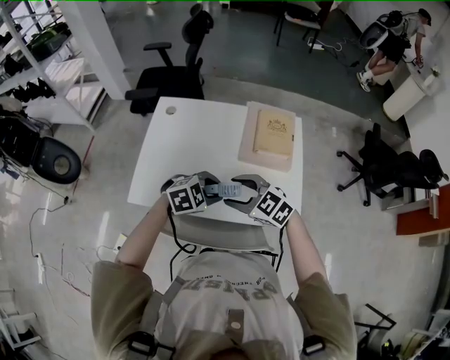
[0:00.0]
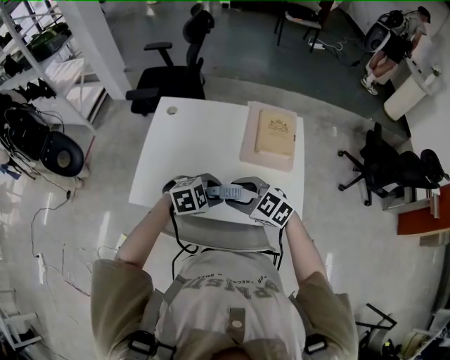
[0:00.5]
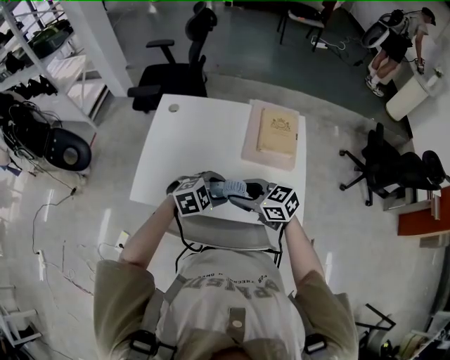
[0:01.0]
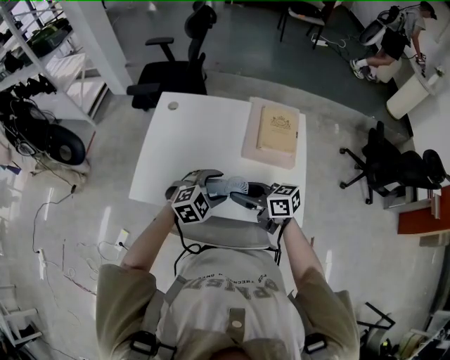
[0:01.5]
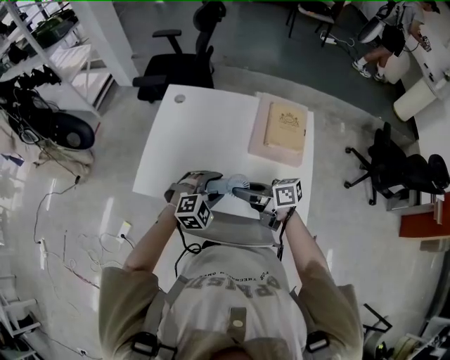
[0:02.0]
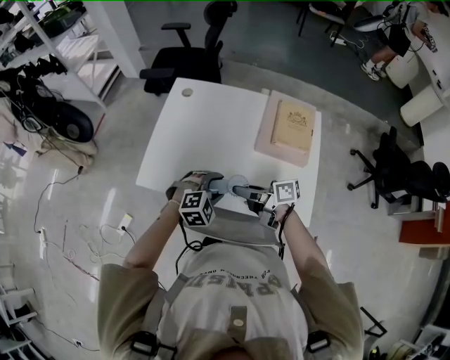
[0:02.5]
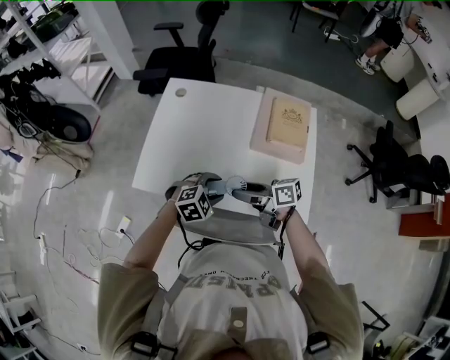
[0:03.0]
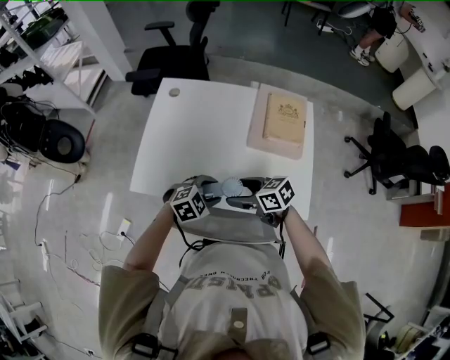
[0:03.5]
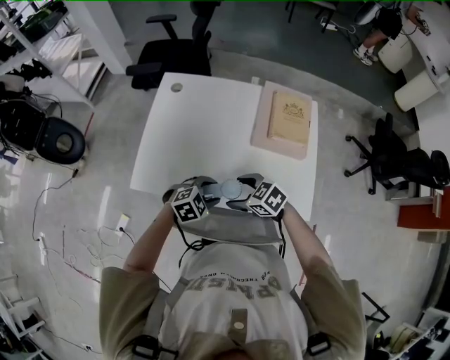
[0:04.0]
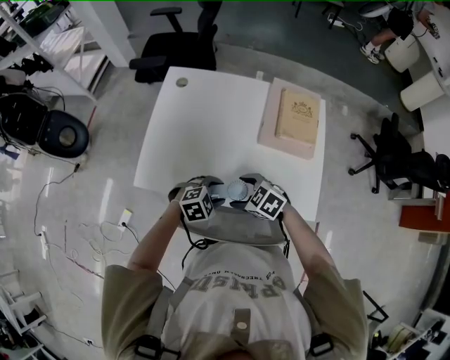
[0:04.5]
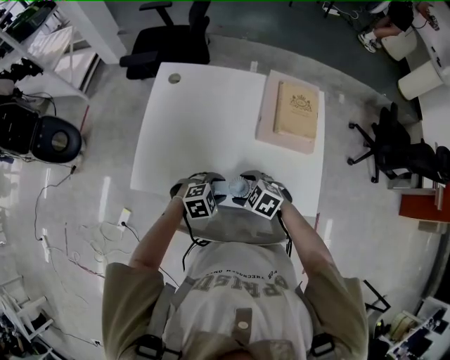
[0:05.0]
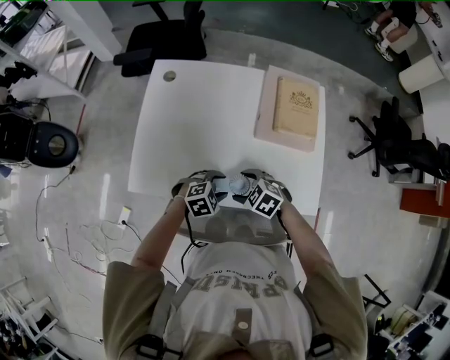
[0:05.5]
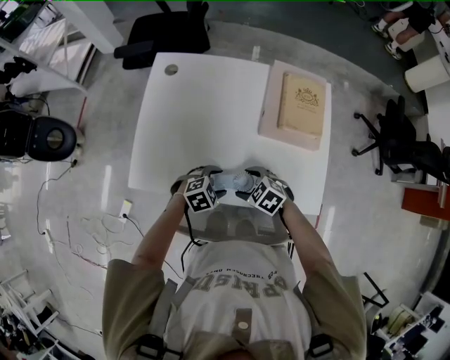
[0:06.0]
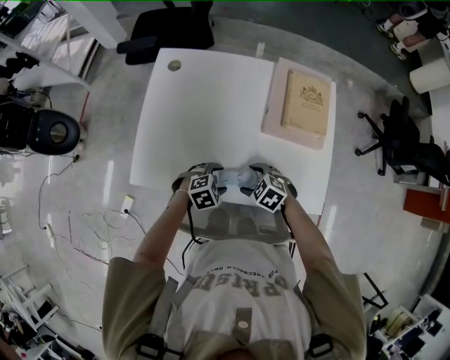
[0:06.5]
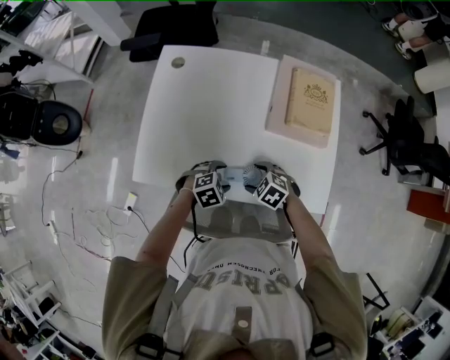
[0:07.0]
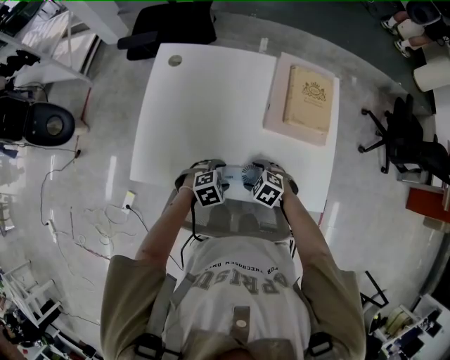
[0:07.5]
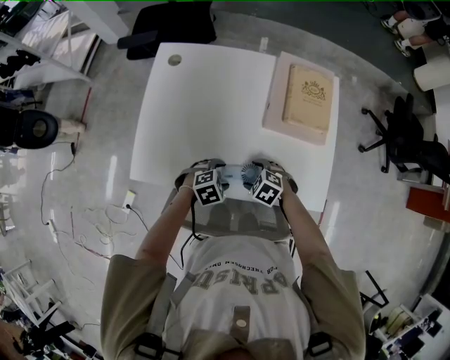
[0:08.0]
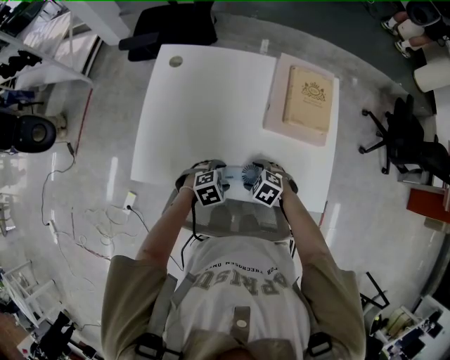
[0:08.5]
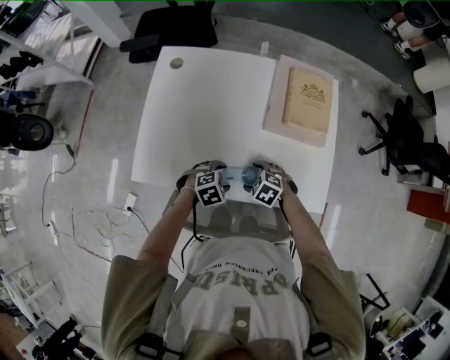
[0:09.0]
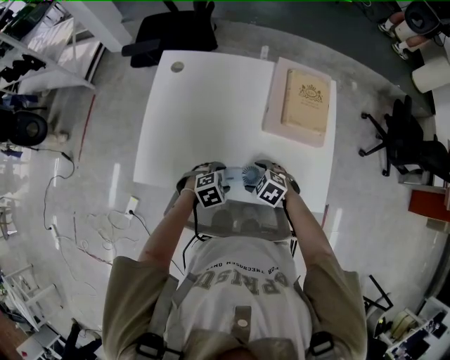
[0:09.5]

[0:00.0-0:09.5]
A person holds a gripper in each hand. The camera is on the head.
0:00.0 to 0:02.0: The left gripper turns by about 30 degrees, and opens its fingers; the right gripper rolls clockwise, seen from behind, by some 60 degrees.
0:02.0 to 0:04.0: The two grippers go about 10 cm downward. The right gripper angles its fingers downward, by roughly 30 degrees, and opens up. Meanwhile the left gripper swivels approximately 30 degrees.
0:04.0 to 0:05.5: Both grippers travel together downward, about 5 cm.
0:05.5 to 0:07.5: The right gripper shifts about 10 cm downward.
0:07.5 to 0:09.5: The grippers move only a little.

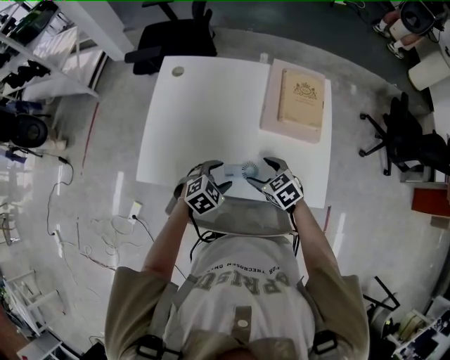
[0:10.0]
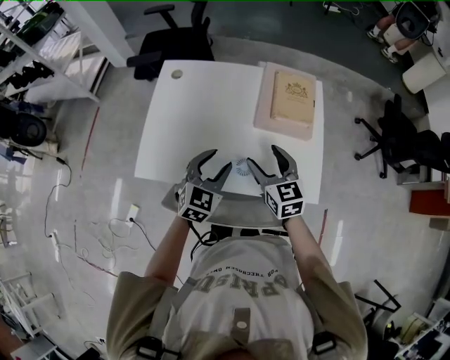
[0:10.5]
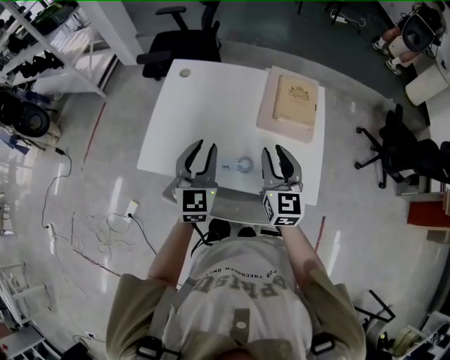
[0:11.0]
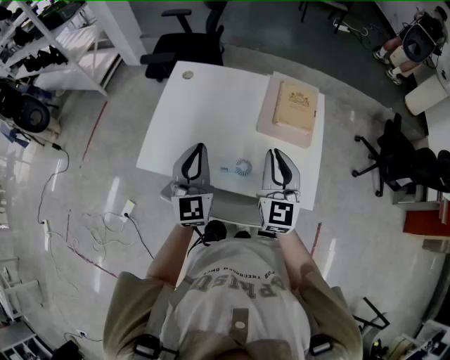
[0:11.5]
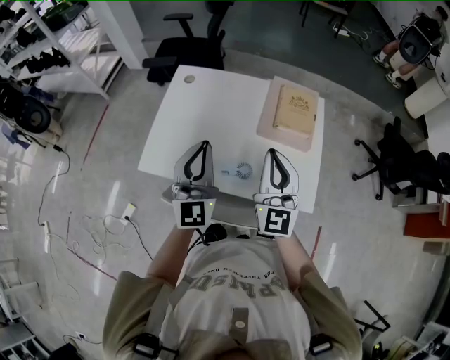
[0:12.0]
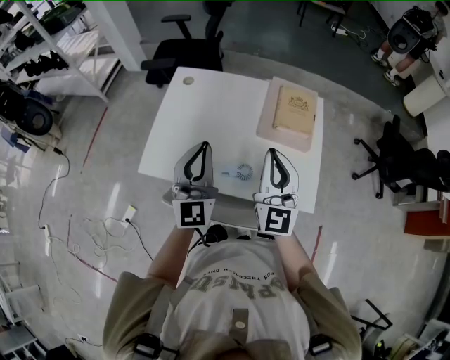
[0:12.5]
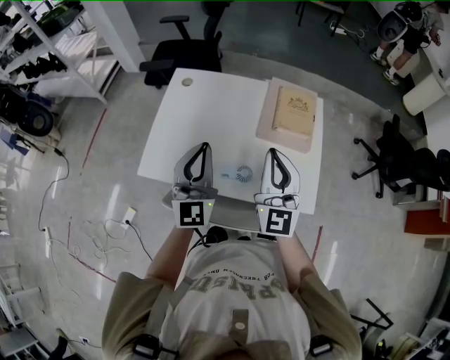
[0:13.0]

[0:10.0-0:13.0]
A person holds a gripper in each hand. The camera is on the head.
0:10.0 to 0:11.5: Both grippers move upward, about 25 cm. The right gripper tips its fingers upward by about 50 degrees, and closes its fingers. Meanwhile the left gripper angles its fingers upward, by about 50 degrees, and closes its fingers.
0:11.5 to 0:13.0: The right gripper travels upward by about 5 cm.

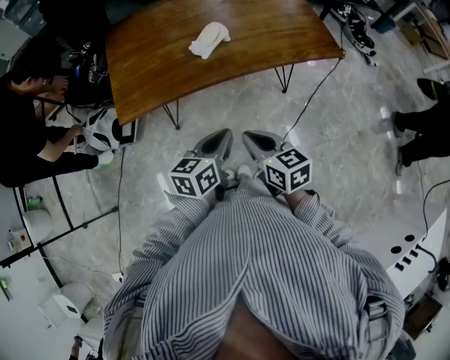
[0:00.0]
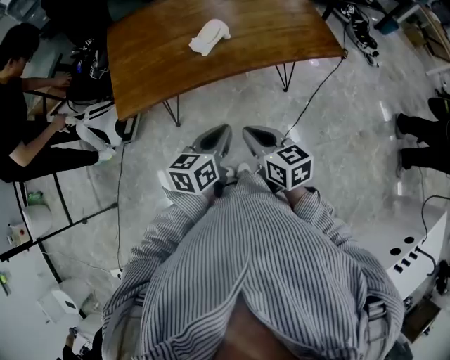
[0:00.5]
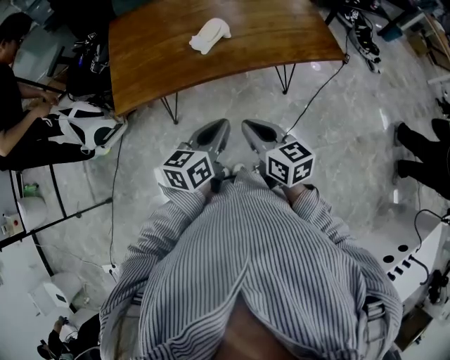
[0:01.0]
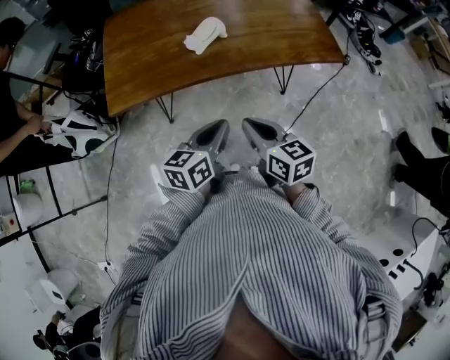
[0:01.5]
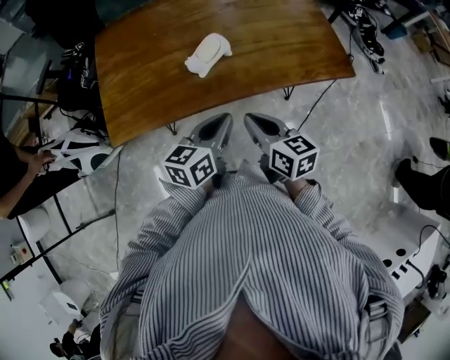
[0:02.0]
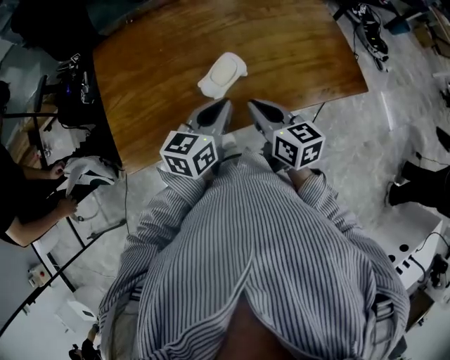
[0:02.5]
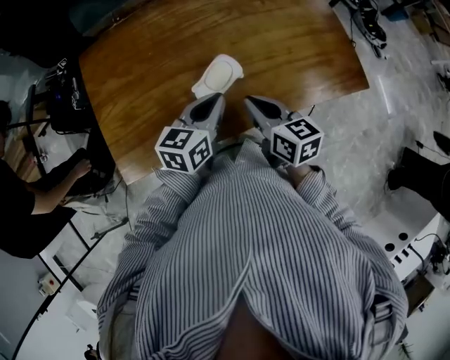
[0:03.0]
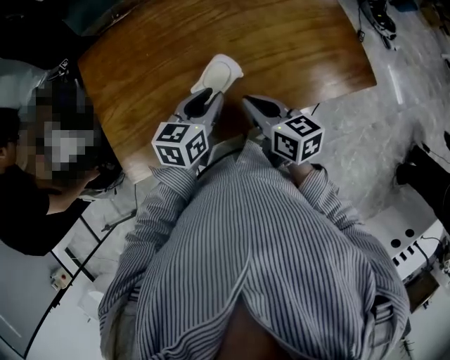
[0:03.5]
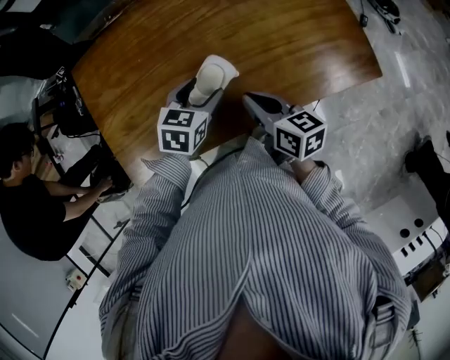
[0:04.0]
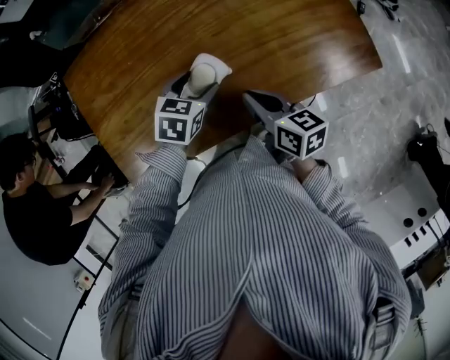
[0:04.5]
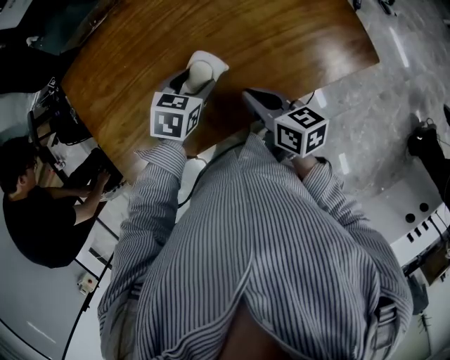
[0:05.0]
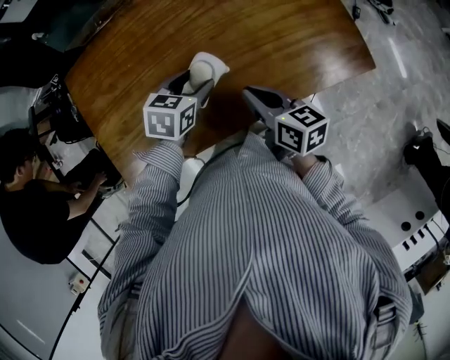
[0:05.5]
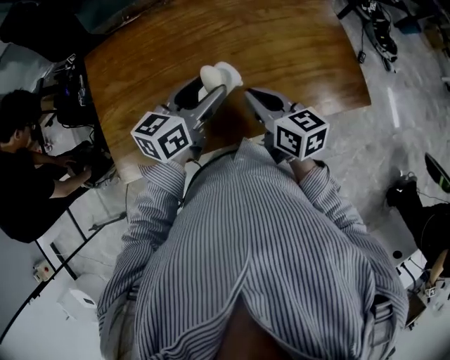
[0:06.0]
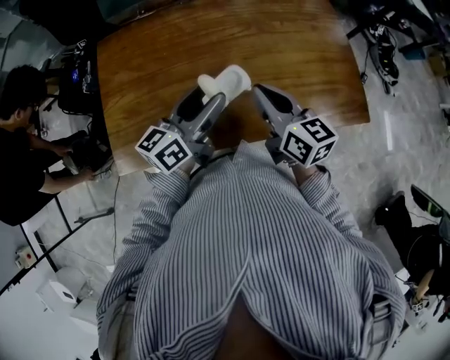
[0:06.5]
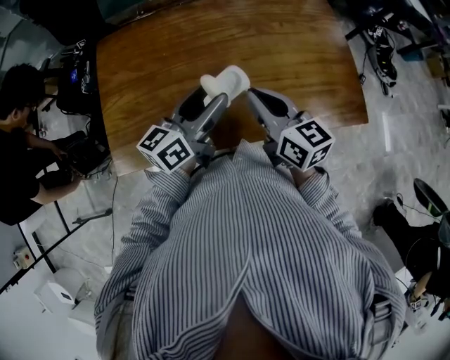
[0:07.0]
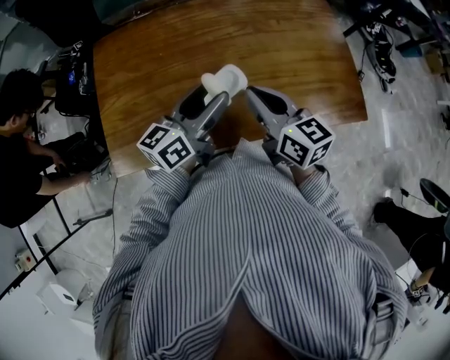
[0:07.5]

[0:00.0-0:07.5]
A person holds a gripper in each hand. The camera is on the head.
0:00.0 to 0:02.0: The two grippers go about 15 cm forward.
0:02.0 to 0:04.0: Both grippers travel together forward, roughly 20 cm. The left gripper swivels about 40 degrees, and opens up.
0:04.0 to 0:05.5: The grippers make only small movements.
0:05.5 to 0:07.5: The grippers both shift upward by about 10 cm. The left gripper points its fingers approximately 50 degrees further upward; the right gripper turns by roughly 20 degrees.

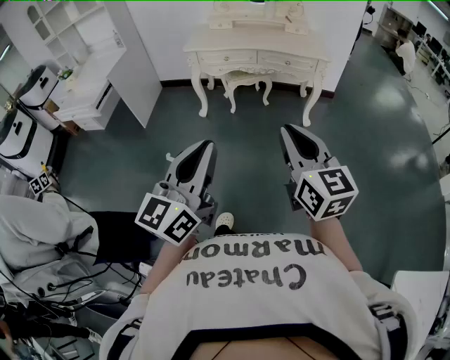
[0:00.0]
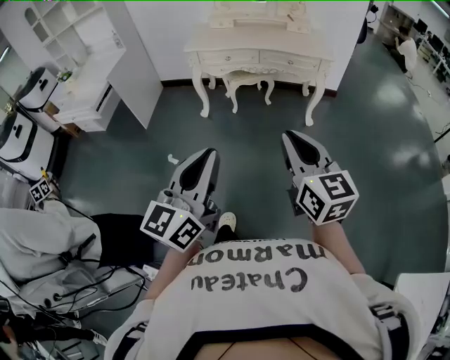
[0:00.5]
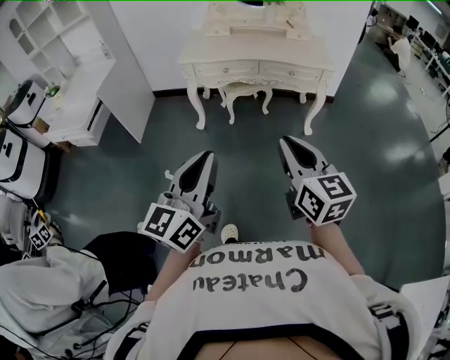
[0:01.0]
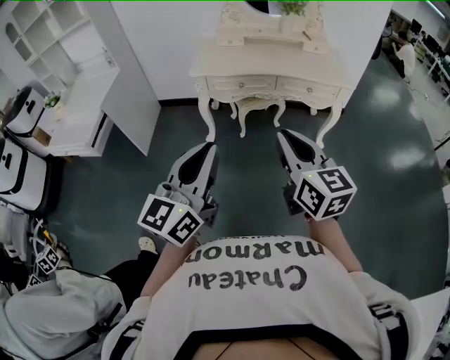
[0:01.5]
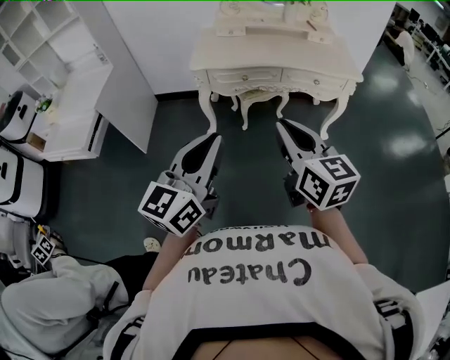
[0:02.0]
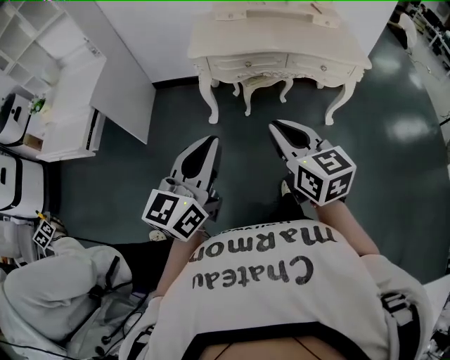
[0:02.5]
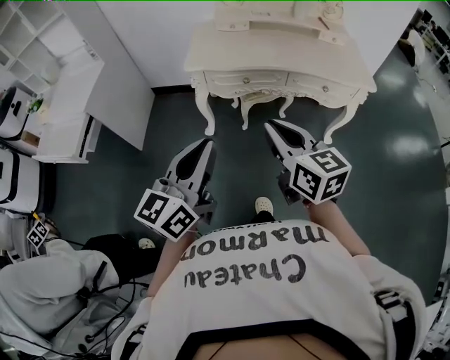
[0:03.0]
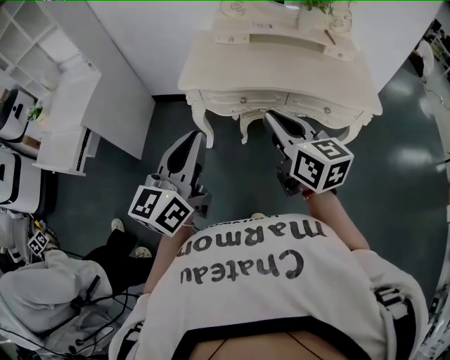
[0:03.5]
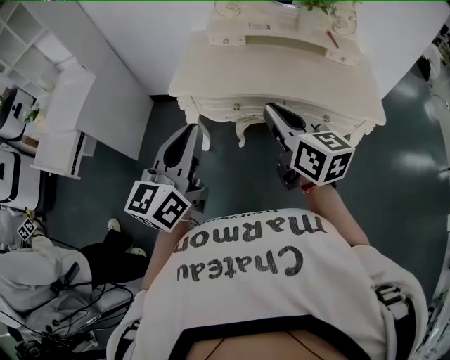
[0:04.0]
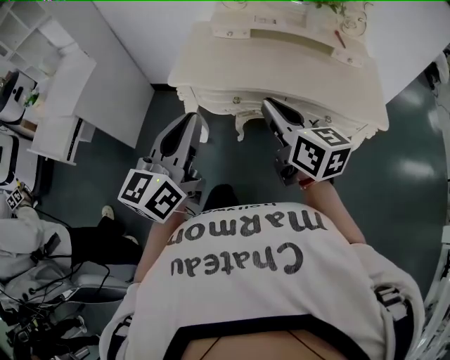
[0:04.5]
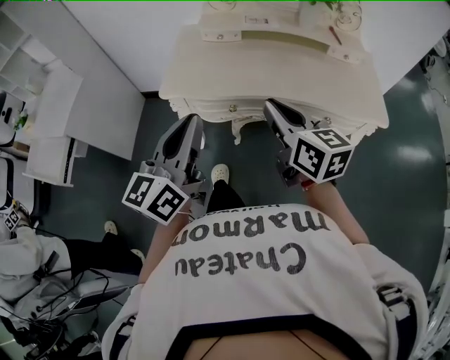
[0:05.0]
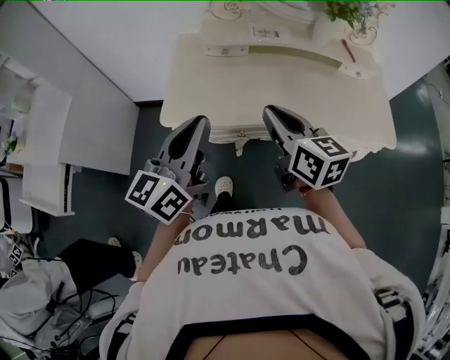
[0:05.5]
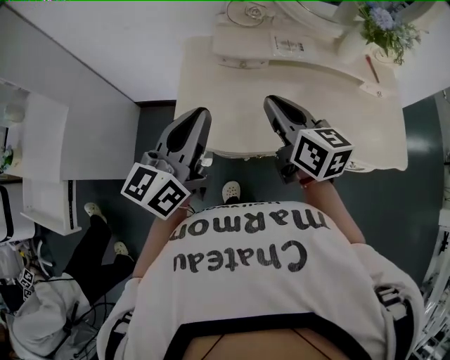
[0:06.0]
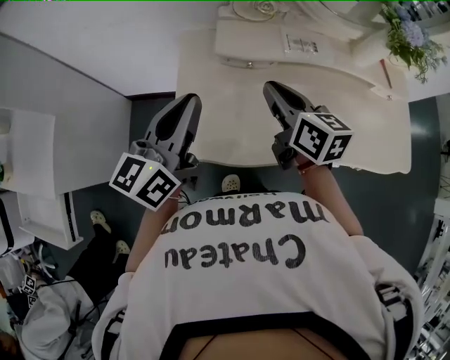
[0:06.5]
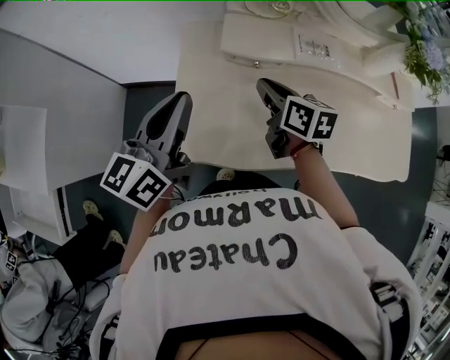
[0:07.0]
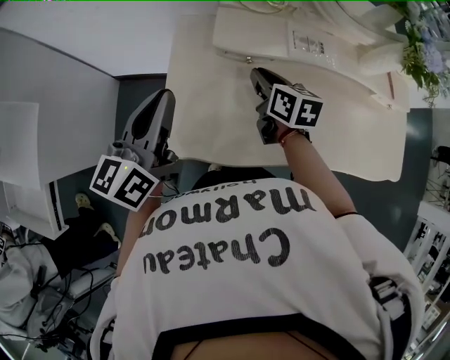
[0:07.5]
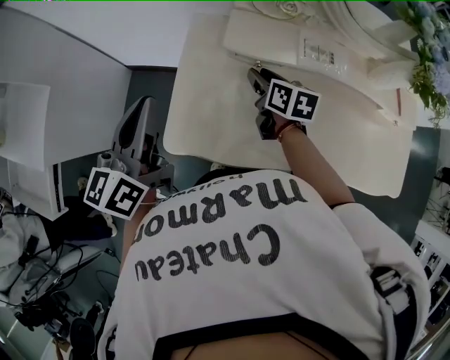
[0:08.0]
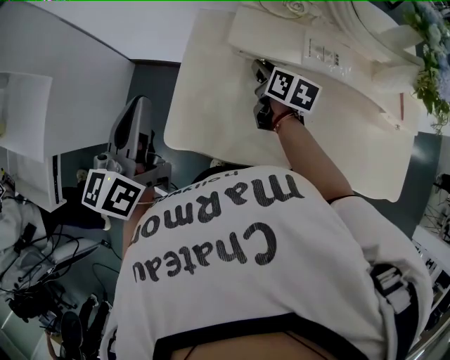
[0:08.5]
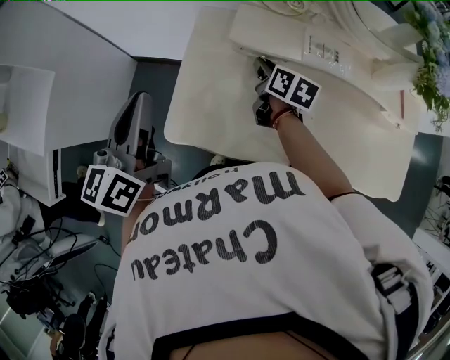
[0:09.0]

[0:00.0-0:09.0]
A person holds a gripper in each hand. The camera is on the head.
0:00.0 to 0:02.0: The two grippers go some 35 cm forward and to the left.
0:02.0 to 0:04.5: The two grippers go about 30 cm forward.
0:04.5 to 0:07.0: The pair of grippers is taken forward, roughly 50 cm. The right gripper rotates approximately 30 degrees.
0:07.0 to 0:09.0: The left gripper is displaced to the left by approximately 5 cm, and turns by roughly 20 degrees. The right gripper goes approximately 10 cm forward and downward.
